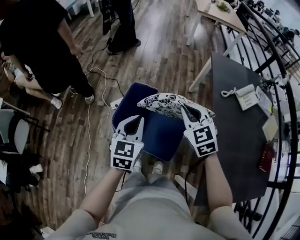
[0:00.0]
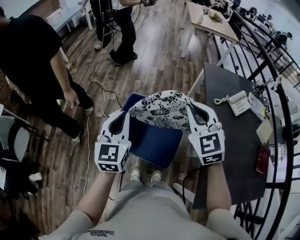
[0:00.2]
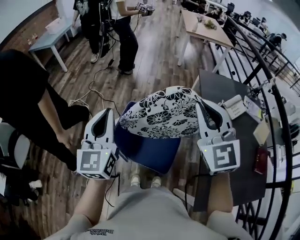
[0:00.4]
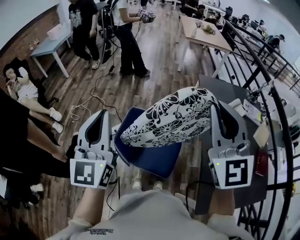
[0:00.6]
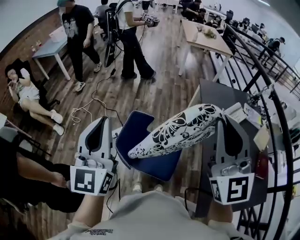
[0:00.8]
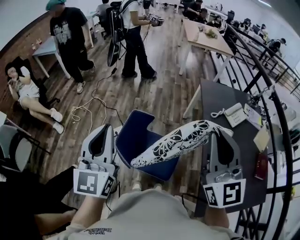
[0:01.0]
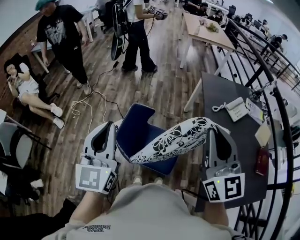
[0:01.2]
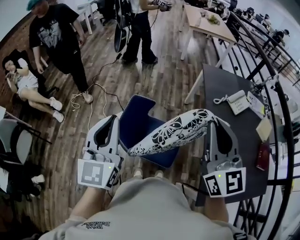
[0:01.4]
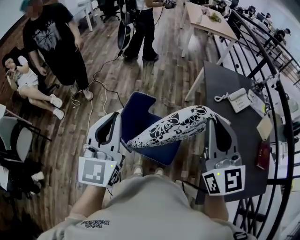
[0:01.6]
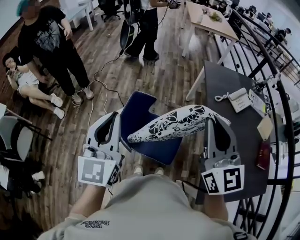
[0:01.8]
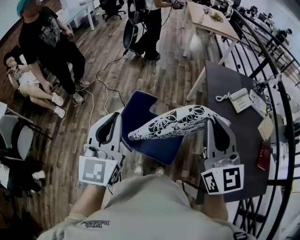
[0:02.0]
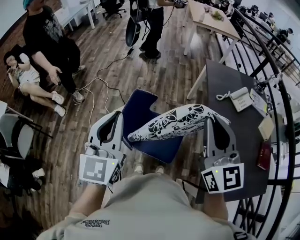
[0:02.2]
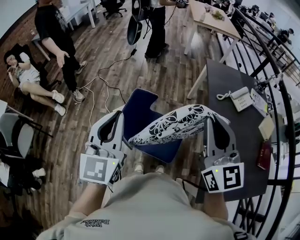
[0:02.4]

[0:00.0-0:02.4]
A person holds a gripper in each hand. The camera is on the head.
0.0 to 1.2 s: The left gripper moves upward and to the left, about 25 cm, and swivels some 30 degrees; the right gripper goes roughly 30 cm upward and backward, and points its fingers about 40 degrees further upward.
1.2 to 2.4 s: The grippers move only a little.

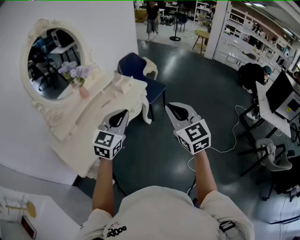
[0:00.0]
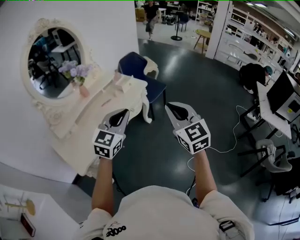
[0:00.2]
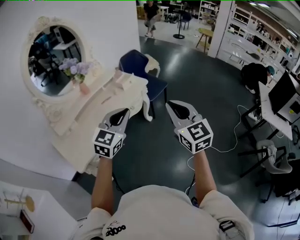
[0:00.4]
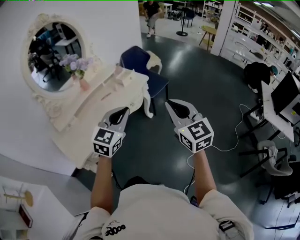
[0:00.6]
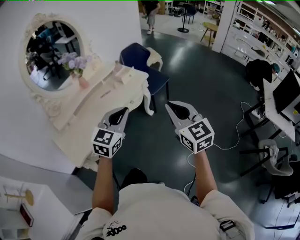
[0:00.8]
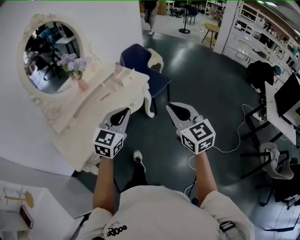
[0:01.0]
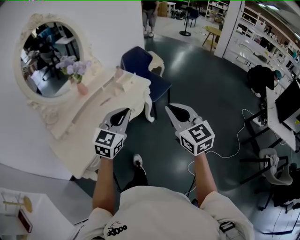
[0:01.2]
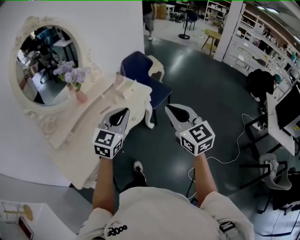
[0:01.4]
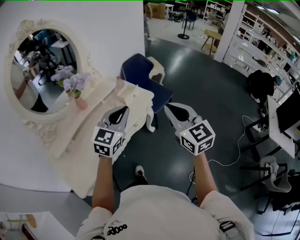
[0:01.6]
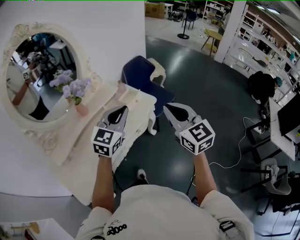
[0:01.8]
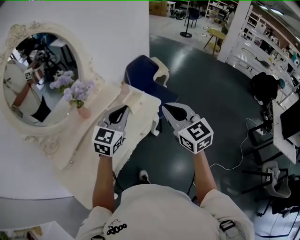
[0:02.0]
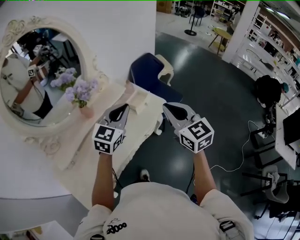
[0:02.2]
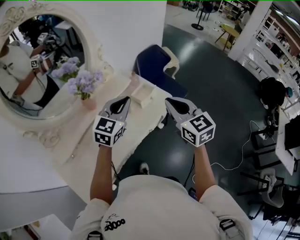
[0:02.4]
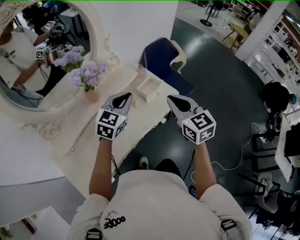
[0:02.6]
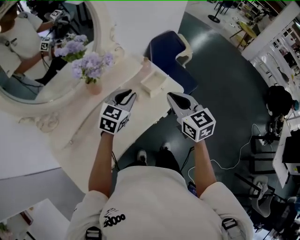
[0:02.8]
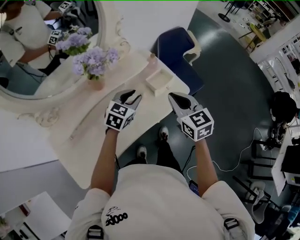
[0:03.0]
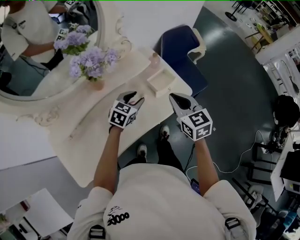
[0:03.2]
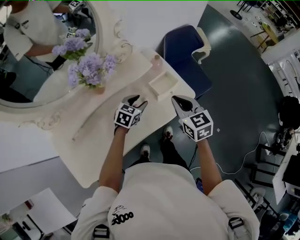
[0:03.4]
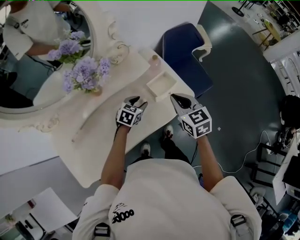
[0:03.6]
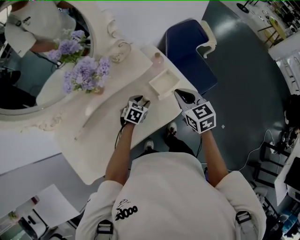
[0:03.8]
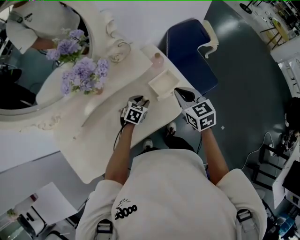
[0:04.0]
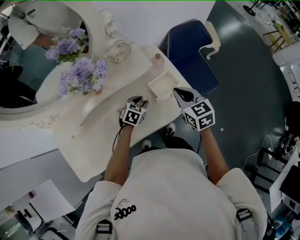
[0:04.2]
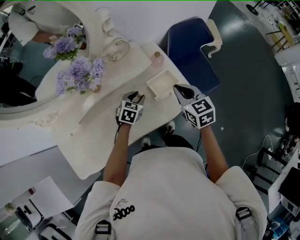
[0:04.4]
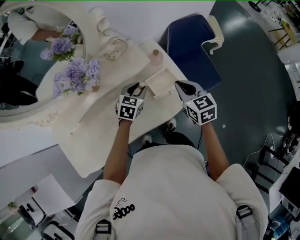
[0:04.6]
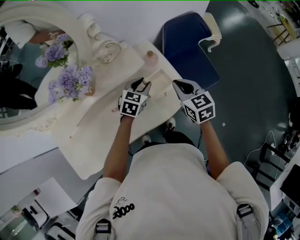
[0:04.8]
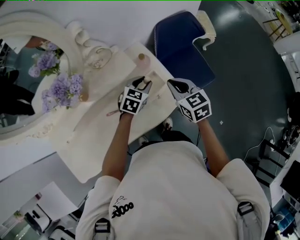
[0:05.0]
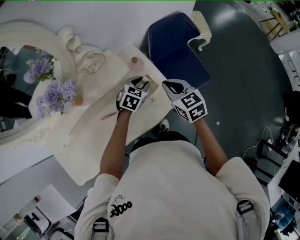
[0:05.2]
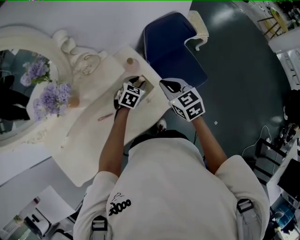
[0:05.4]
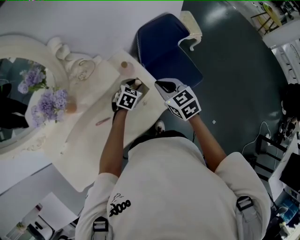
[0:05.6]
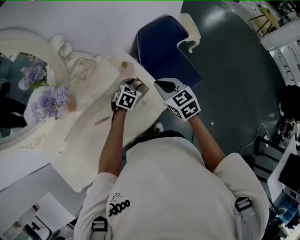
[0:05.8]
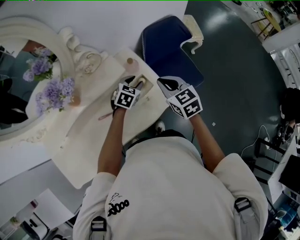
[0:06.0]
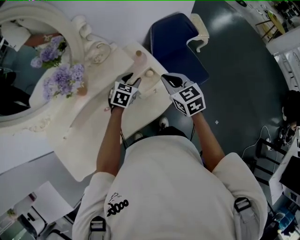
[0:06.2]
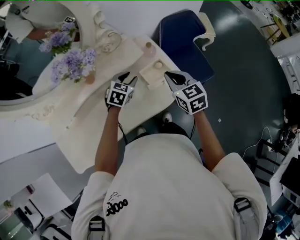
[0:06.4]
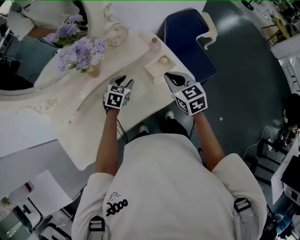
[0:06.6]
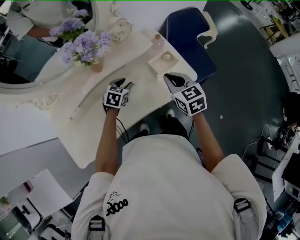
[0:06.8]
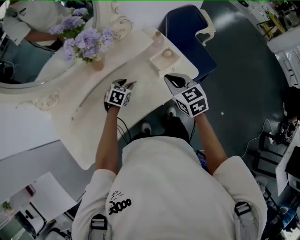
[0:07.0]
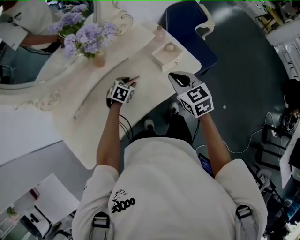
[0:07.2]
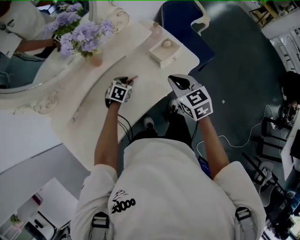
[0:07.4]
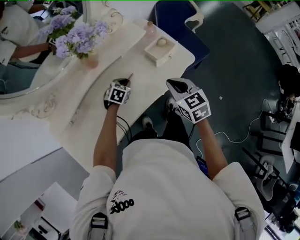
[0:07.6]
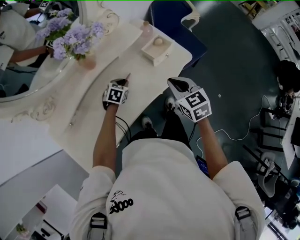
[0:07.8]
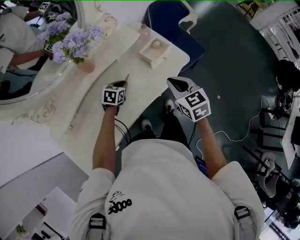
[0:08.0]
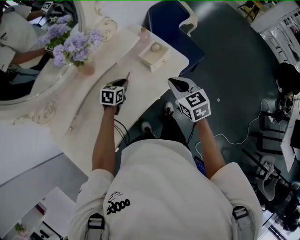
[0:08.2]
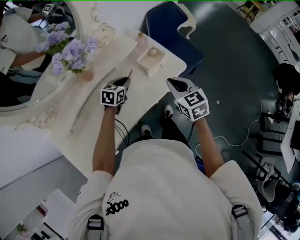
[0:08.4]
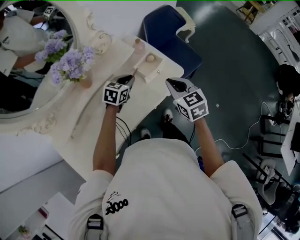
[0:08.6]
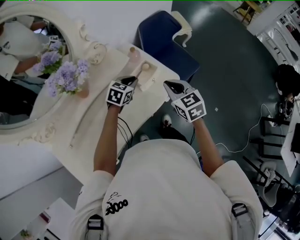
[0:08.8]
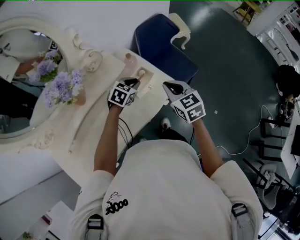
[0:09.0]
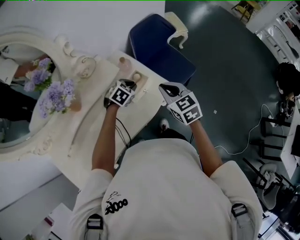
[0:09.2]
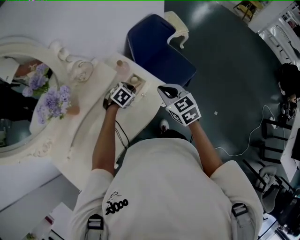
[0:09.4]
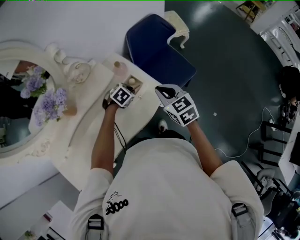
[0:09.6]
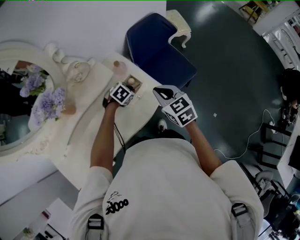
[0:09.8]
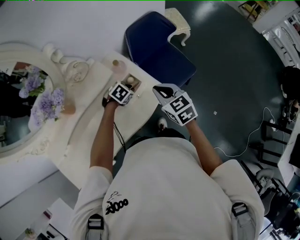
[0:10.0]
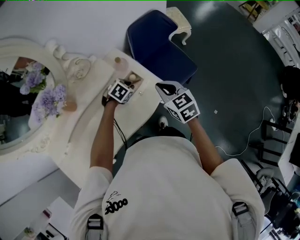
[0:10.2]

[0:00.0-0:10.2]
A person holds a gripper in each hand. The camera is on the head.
0.0 to 1.4 s: The two grippers go roughly 15 cm forward.
1.4 to 3.0 s: The left gripper moves forward, downward and to the left, some 35 cm, changes its angle by roughly 30 degrees, and opens up, while the right gripper goes approximately 35 cm forward, to the left and downward, and swivels about 20 degrees.
3.0 to 4.4 s: The right gripper heads forward and downward, covering approximately 15 cm. The left gripper travels downward and forward by roughly 15 cm, and changes its angle by some 20 degrees.
4.4 to 5.8 s: The right gripper is displaced to the right by approximately 5 cm. Meanwhile the left gripper goes some 15 cm to the right and forward.
5.8 to 7.2 s: The left gripper moves to the left and backward, some 30 cm. Meanwhile the right gripper moves backward and to the left, roughly 20 cm.
7.2 to 8.8 s: The right gripper travels to the right by about 10 cm. Meanwhile the left gripper shifts about 20 cm to the right, upward and forward, and closes up.
8.8 to 10.2 s: The right gripper goes roughly 10 cm forward. Meanwhile the left gripper heads downward and forward, covering about 10 cm, and changes its angle by approximately 30 degrees.

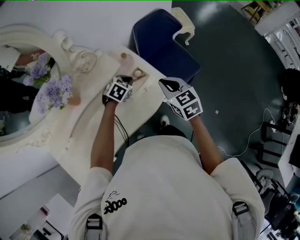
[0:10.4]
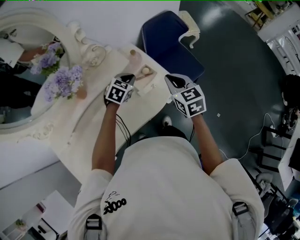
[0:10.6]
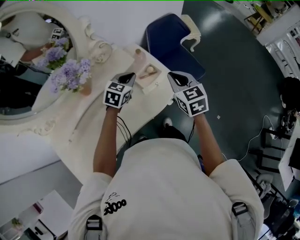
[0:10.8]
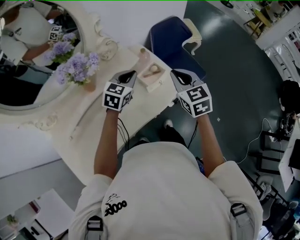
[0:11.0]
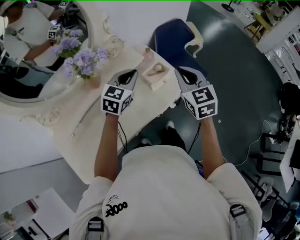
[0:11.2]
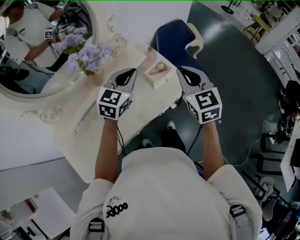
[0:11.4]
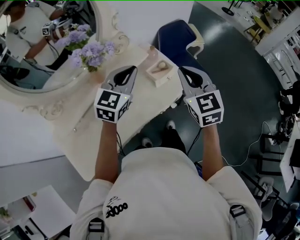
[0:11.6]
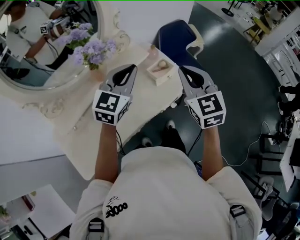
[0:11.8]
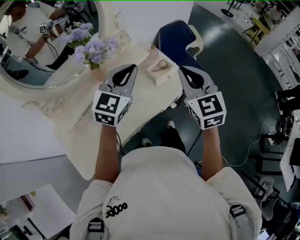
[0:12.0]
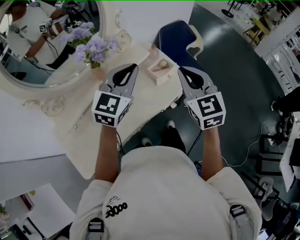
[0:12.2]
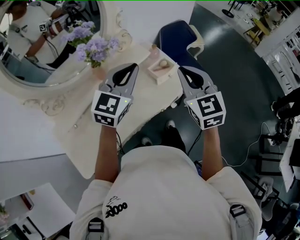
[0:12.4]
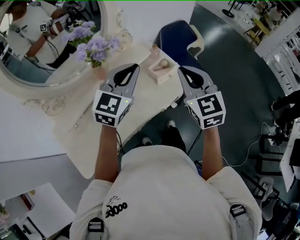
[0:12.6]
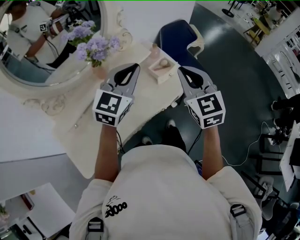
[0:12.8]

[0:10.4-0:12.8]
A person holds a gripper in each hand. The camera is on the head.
10.4 to 11.6 s: The right gripper goes roughly 20 cm upward, backward and to the left, and swivels approximately 20 degrees, while the left gripper moves upward and backward, approximately 30 cm, and tips its fingers upward by some 50 degrees.
11.6 to 12.8 s: The left gripper shifts by some 5 cm.

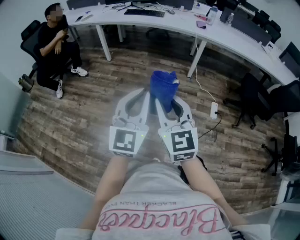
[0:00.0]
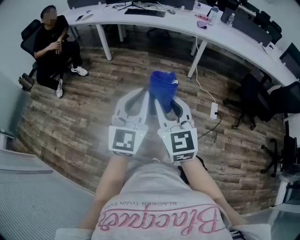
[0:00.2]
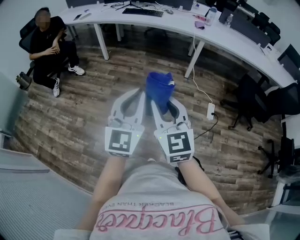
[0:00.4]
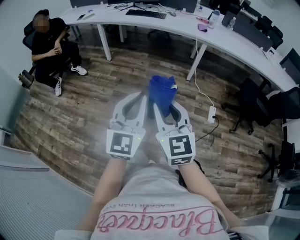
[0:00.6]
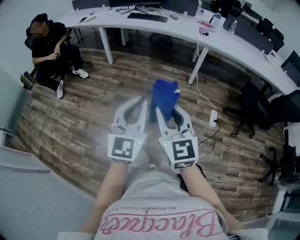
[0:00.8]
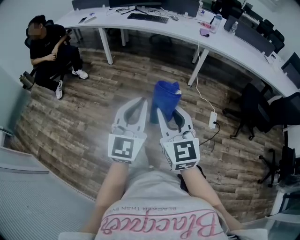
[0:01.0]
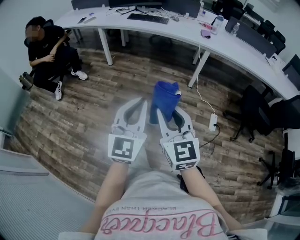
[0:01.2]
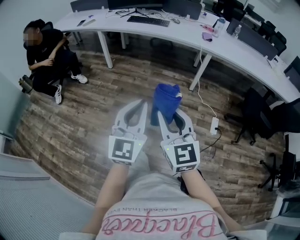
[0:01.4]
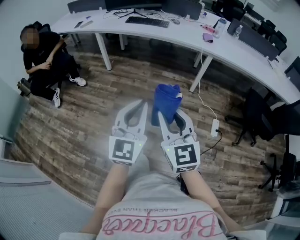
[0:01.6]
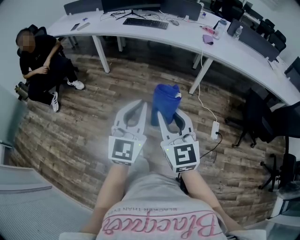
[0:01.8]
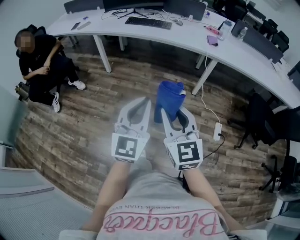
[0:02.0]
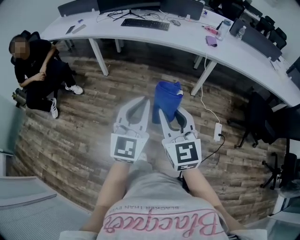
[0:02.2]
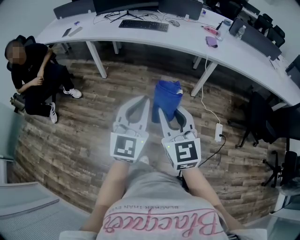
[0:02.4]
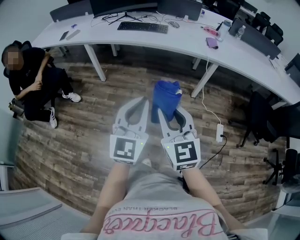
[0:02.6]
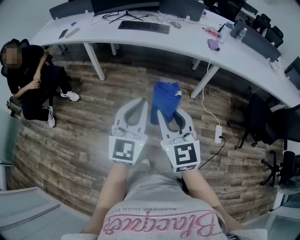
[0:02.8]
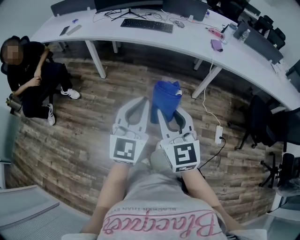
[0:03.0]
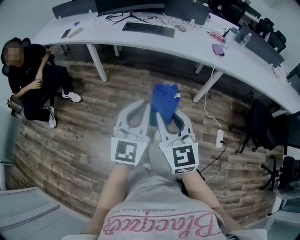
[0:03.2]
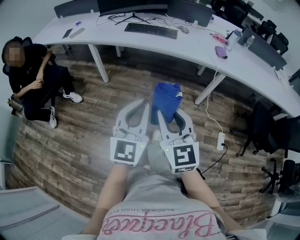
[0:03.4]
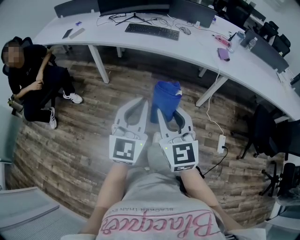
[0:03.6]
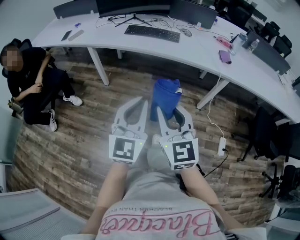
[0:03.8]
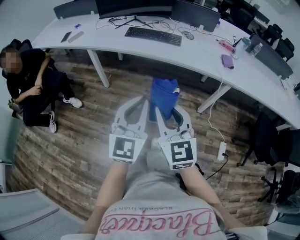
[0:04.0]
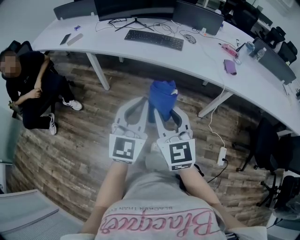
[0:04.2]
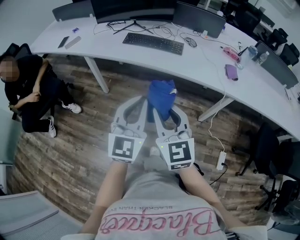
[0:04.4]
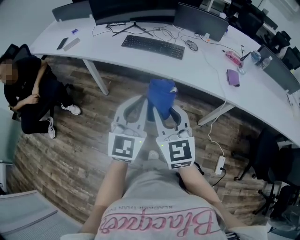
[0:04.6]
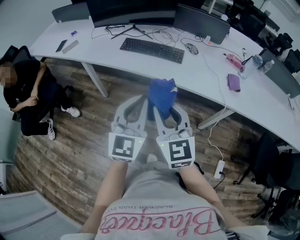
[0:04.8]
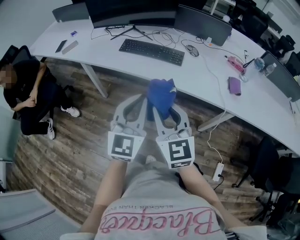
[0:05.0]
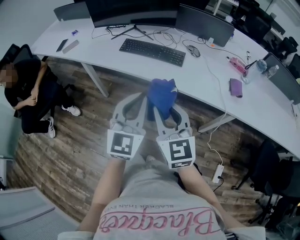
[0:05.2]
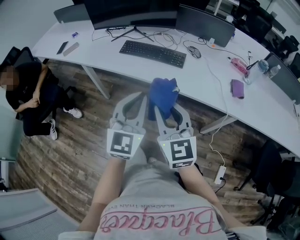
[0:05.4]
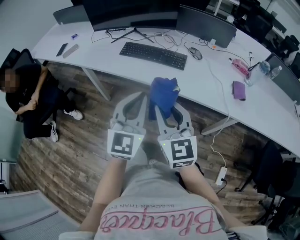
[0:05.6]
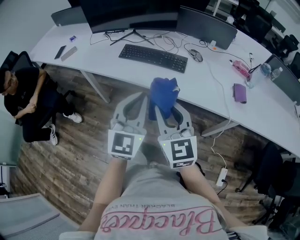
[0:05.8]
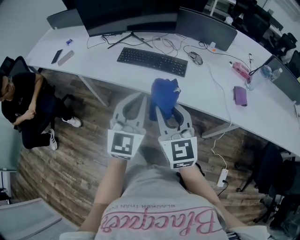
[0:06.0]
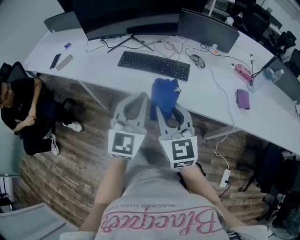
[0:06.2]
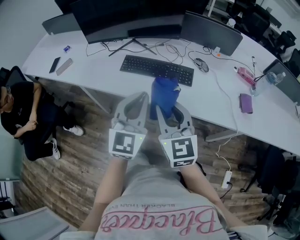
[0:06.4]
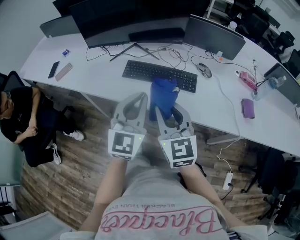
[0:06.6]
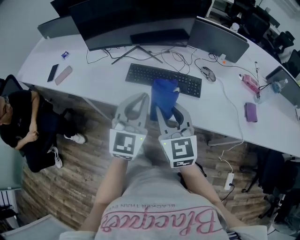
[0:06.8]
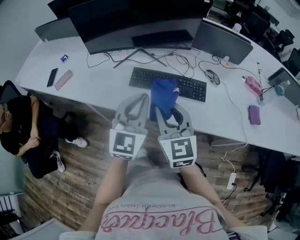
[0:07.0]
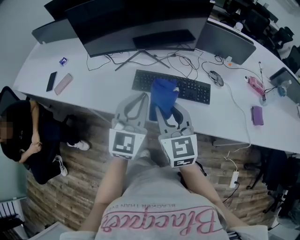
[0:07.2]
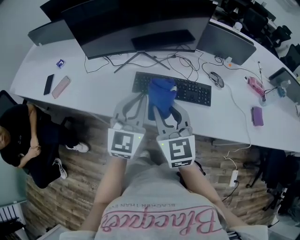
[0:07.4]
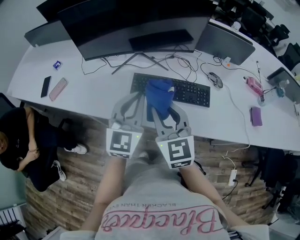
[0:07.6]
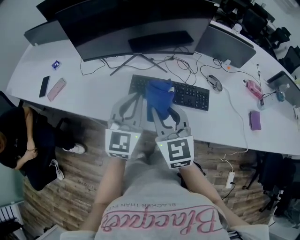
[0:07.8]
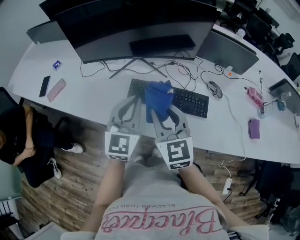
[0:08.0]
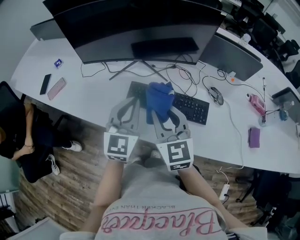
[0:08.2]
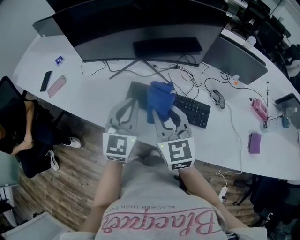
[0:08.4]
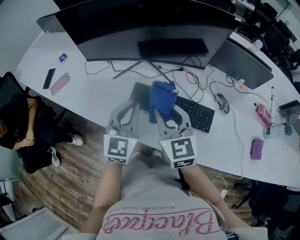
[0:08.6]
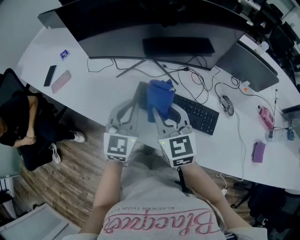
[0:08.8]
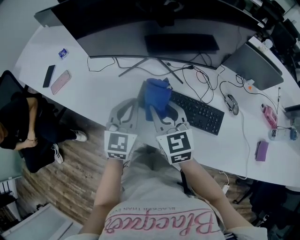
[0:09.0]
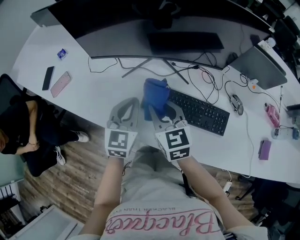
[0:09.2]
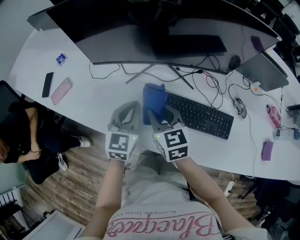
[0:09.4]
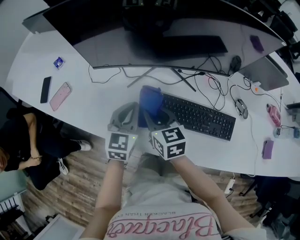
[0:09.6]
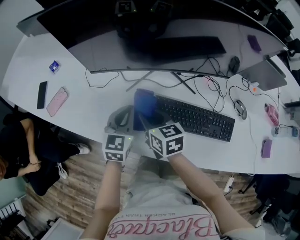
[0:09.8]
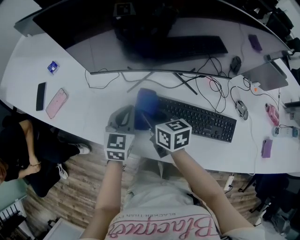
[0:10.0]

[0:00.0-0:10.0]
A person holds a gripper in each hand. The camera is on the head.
0.0 to 1.4 s: The grippers both shift forward by approximately 10 cm.
1.4 to 2.8 s: Both grippers move forward, about 30 cm.
2.8 to 4.2 s: Both grippers move forward, roughly 25 cm.
4.2 to 5.8 s: Both grippers travel together forward, about 25 cm.
5.8 to 7.2 s: The grippers both shift forward and to the left by about 30 cm.
7.2 to 8.6 s: The right gripper travels forward by about 15 cm. The left gripper goes about 15 cm forward and downward.
8.6 to 10.0 s: The left gripper moves forward, to the left and downward, about 25 cm, and changes its angle by roughly 20 degrees. The right gripper heads to the left, downward and forward, covering about 25 cm, and turns by approximately 40 degrees.
